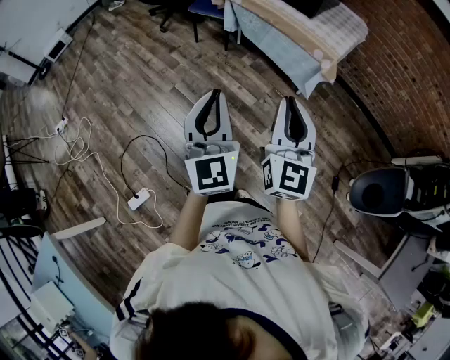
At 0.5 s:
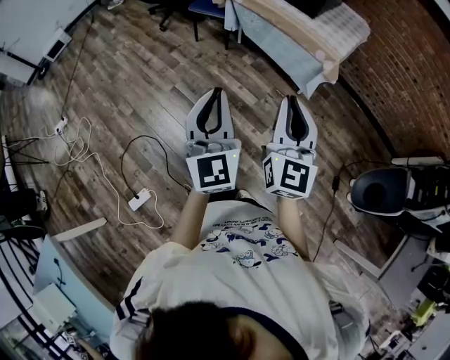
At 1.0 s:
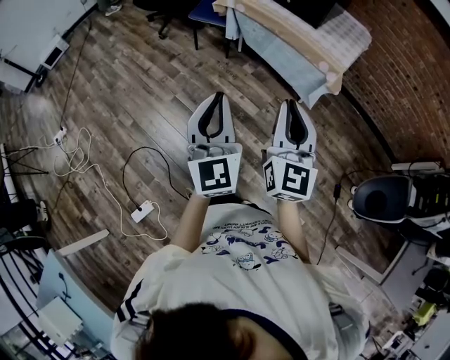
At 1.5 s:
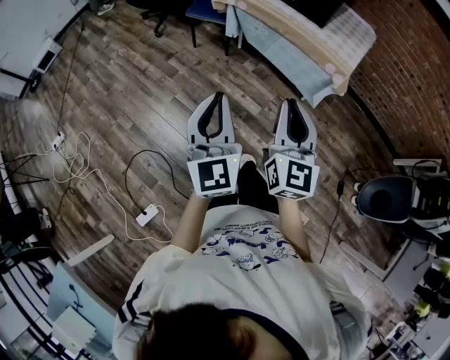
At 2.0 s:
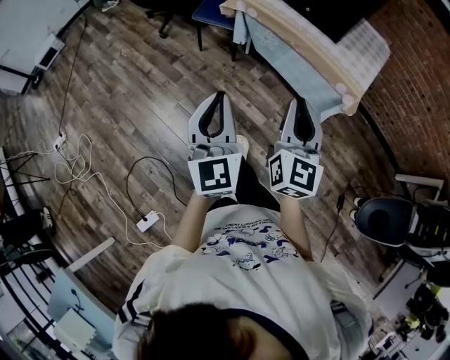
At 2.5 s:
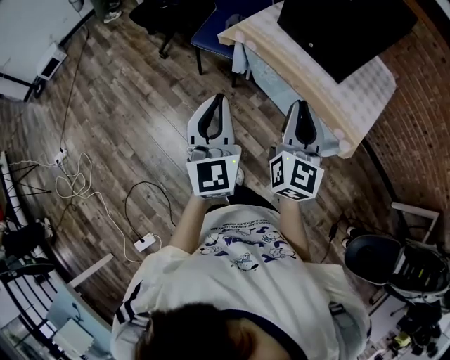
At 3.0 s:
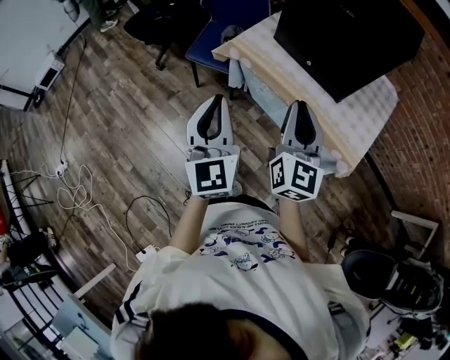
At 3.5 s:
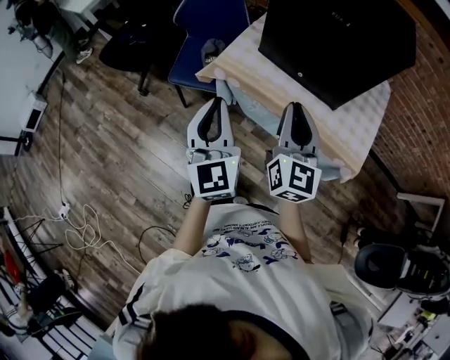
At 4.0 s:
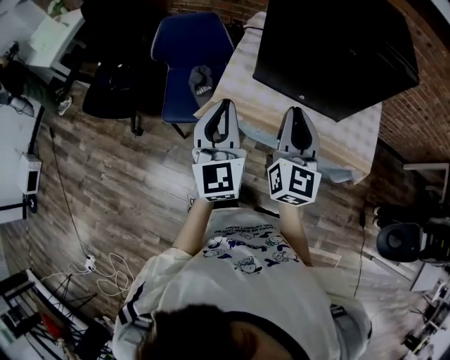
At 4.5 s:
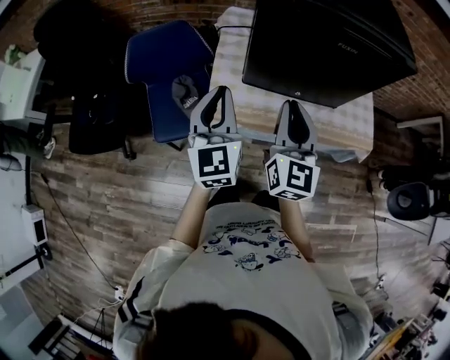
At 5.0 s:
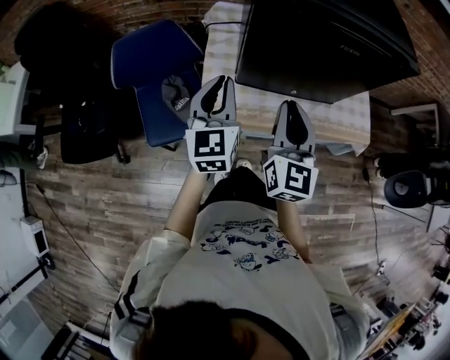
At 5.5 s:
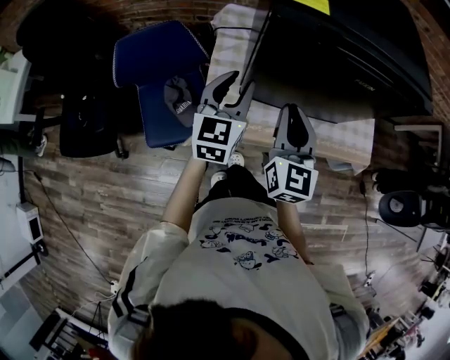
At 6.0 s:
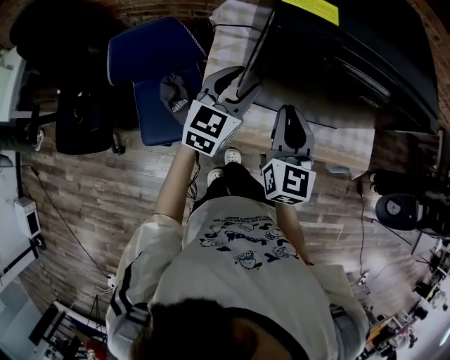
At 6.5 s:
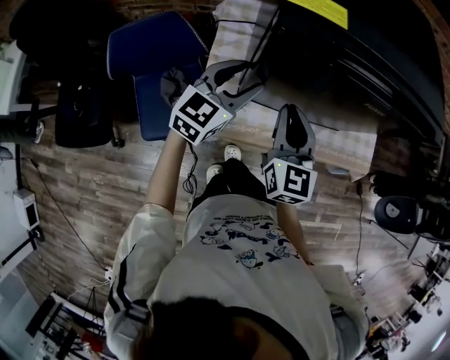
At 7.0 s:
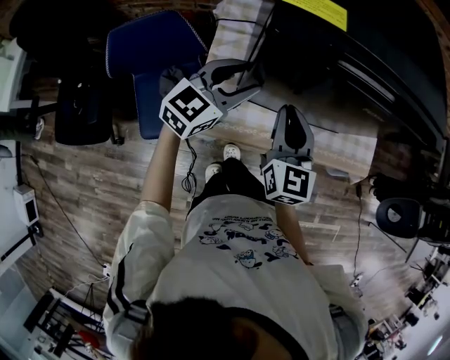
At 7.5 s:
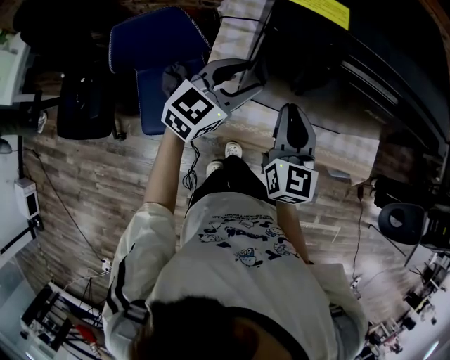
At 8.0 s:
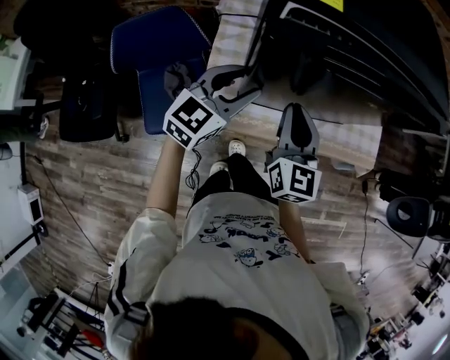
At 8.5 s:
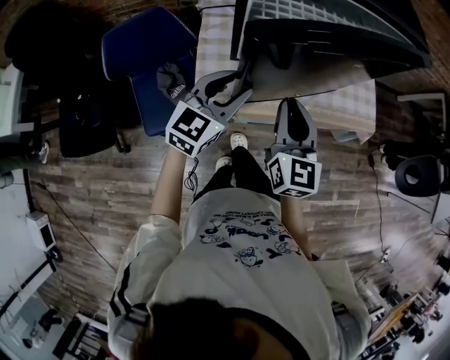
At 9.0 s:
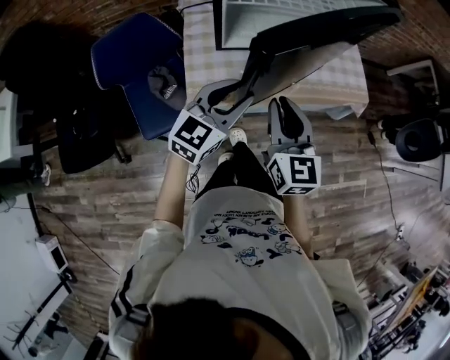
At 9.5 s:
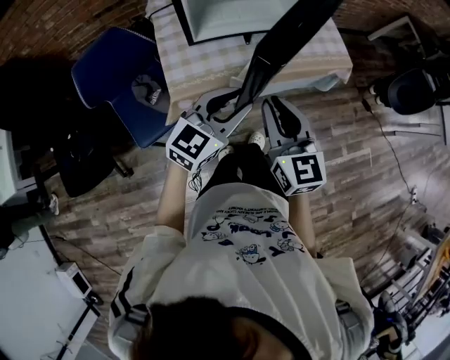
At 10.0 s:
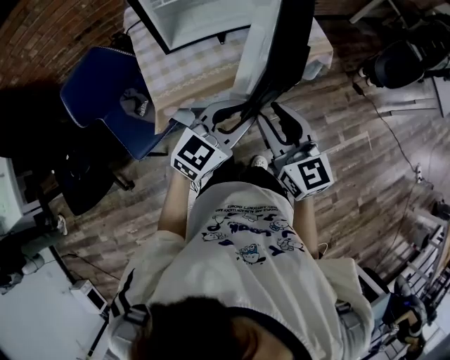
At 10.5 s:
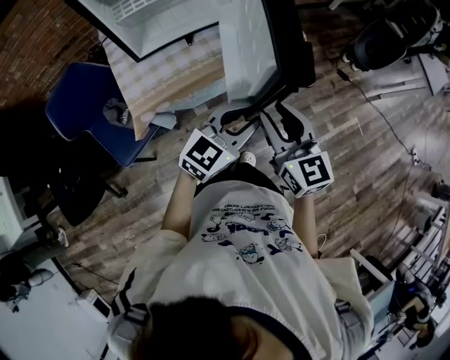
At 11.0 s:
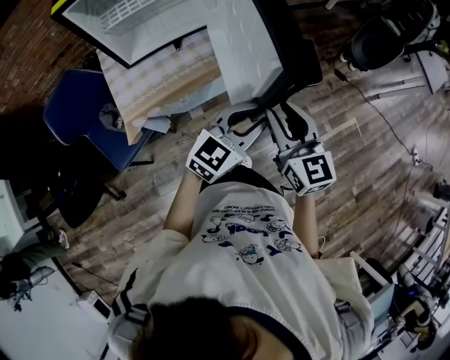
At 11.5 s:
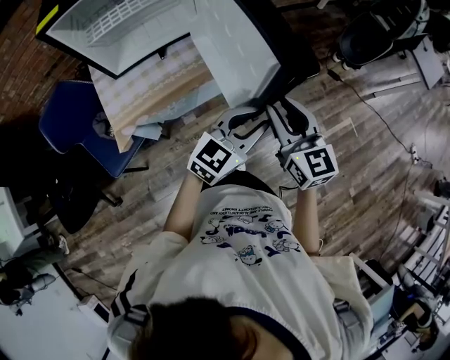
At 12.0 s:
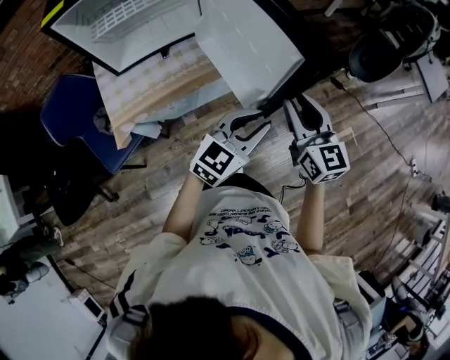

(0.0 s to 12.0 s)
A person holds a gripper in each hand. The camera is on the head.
0.0 s - 2.0 s: Both grippers travel together forward, about 25 cm.
2.0 s - 4.0 s: Both grippers are carried forward, about 60 cm. The left gripper turns by some 30 degrees. The right gripper swivels roughly 20 degrees.
4.0 s - 6.0 s: The left gripper ends up about 30 cm from where it was, swivels some 50 degrees, and opens. The right gripper ends up approximately 20 cm from where it was.
6.0 s - 8.0 s: The grippers make only small movements.
8.0 s - 10.0 s: The right gripper heads backward and to the right, covering roughly 30 cm, and opens its fingers. Meanwhile the left gripper is displaced to the right and backward by some 35 cm, swivels approximately 30 degrees, and closes.
10.0 s - 12.0 s: The left gripper goes about 25 cm to the right; the right gripper goes about 30 cm to the right and forward.

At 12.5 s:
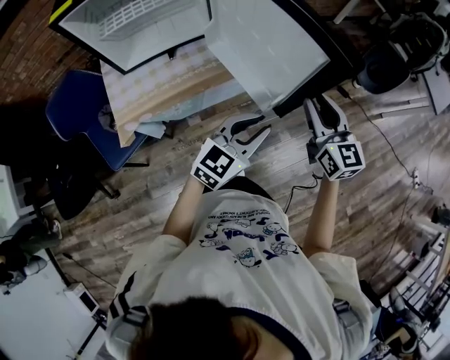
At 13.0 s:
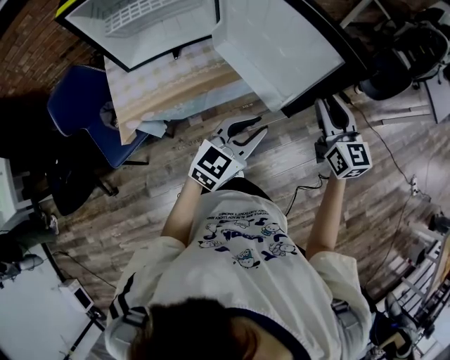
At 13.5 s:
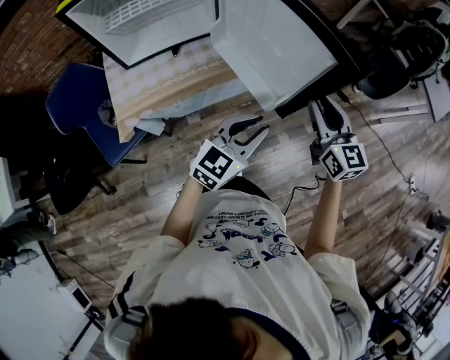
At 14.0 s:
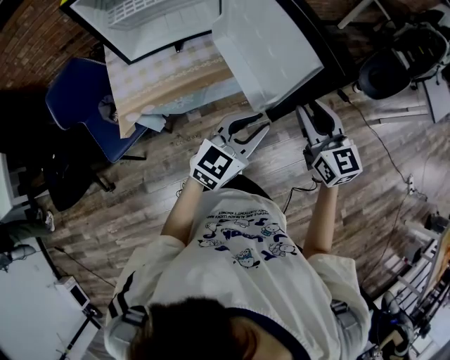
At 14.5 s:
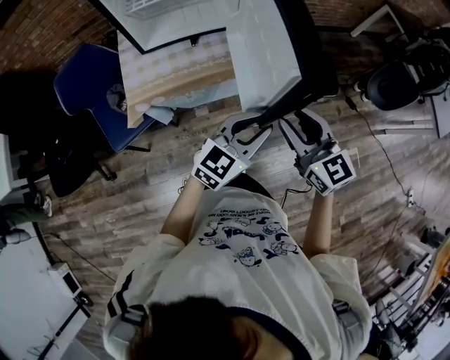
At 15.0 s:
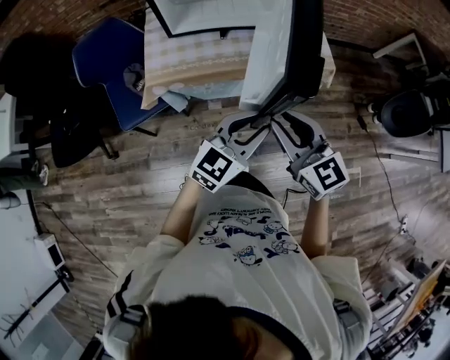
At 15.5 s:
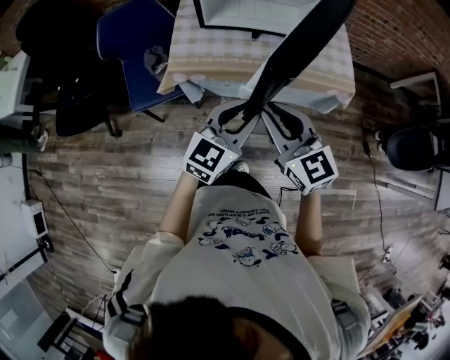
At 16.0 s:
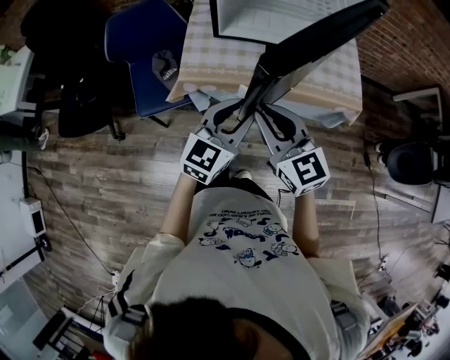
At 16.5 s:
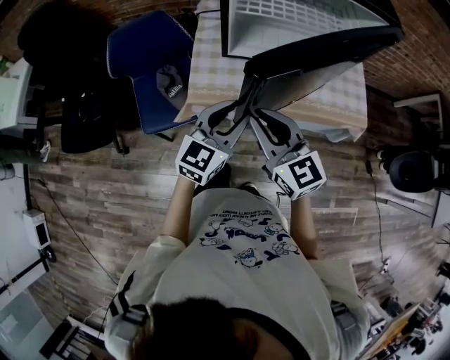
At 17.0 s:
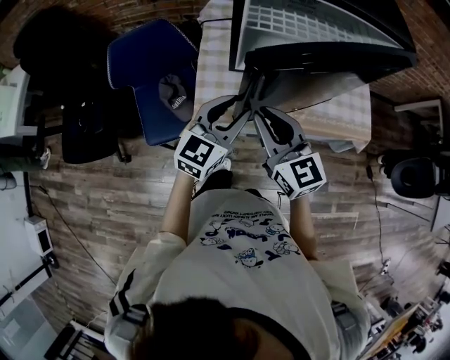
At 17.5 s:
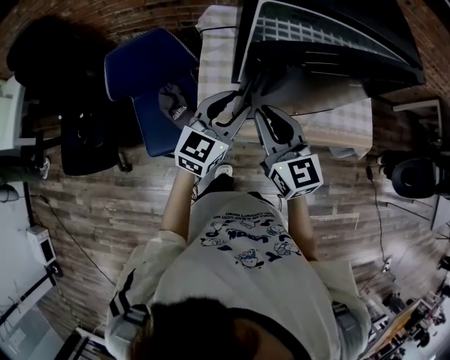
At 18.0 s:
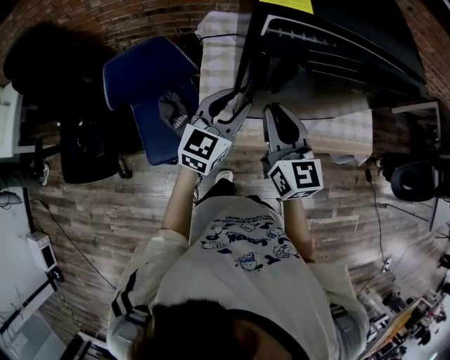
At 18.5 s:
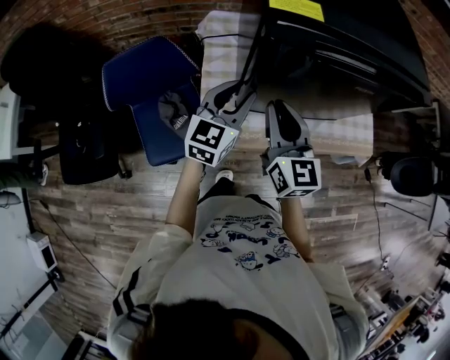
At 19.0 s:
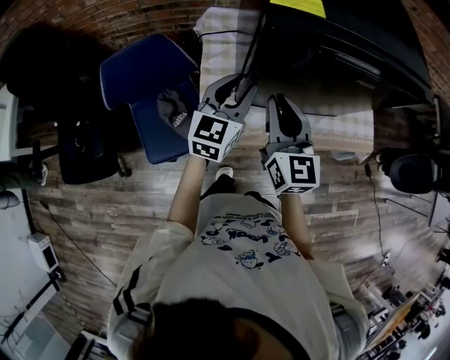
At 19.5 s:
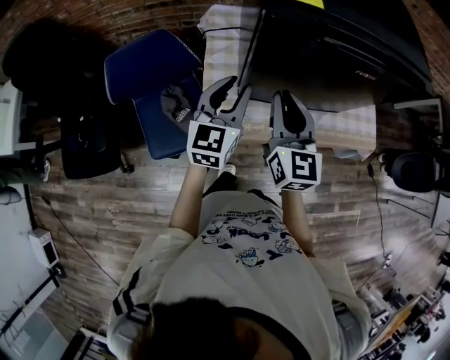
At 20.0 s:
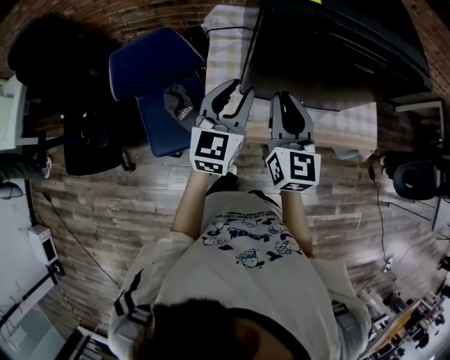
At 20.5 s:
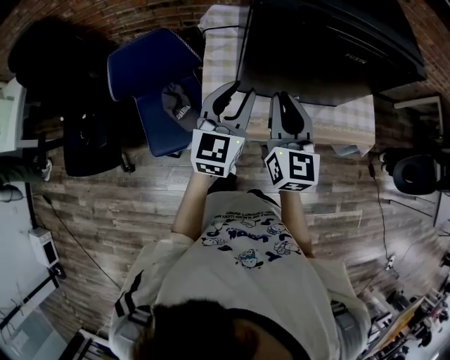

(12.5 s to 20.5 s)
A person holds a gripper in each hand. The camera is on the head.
12.5 s - 14.5 s: The right gripper moves to the left and backward, roughly 15 cm, and swivels about 20 degrees. Meanwhile the left gripper shifts by approximately 5 cm.
14.5 s - 16.5 s: The right gripper moves roughly 35 cm, and closes up; the left gripper ends up some 35 cm from where it was, and turns by about 30 degrees.
16.5 s - 18.5 s: Both grippers travel together forward, some 20 cm. The right gripper rotates roughly 30 degrees.
18.5 s - 20.5 s: The left gripper moves backward, about 5 cm.

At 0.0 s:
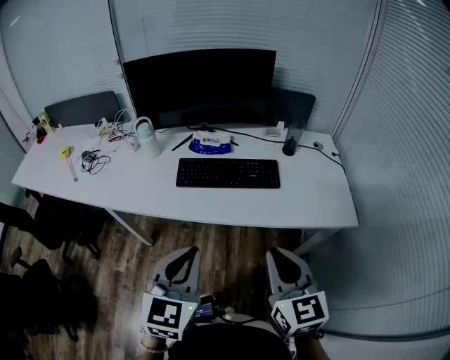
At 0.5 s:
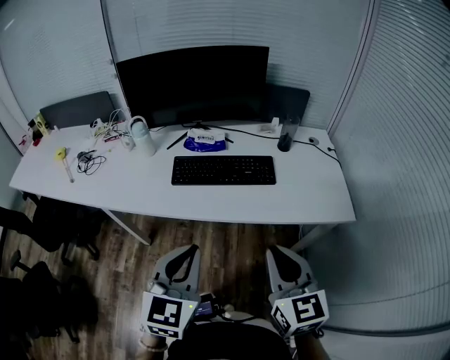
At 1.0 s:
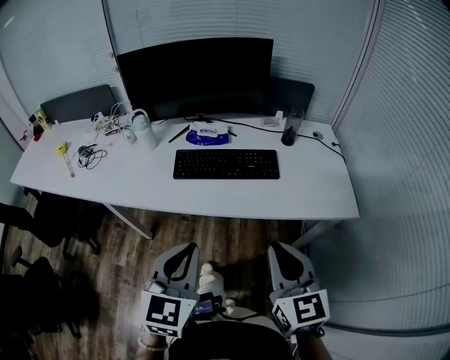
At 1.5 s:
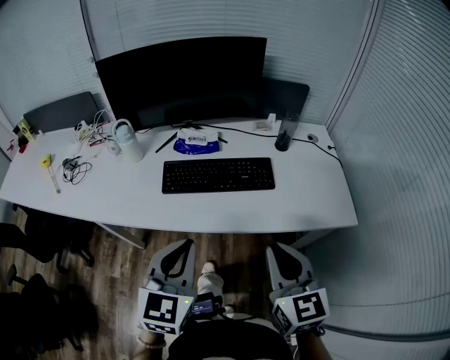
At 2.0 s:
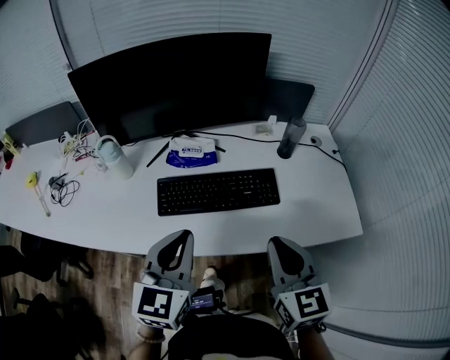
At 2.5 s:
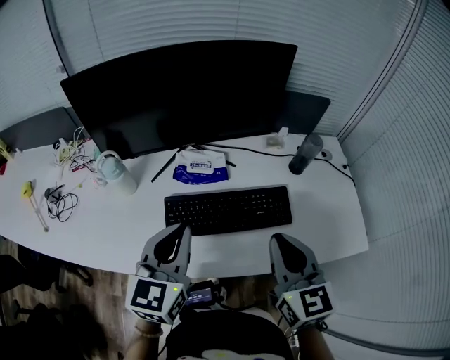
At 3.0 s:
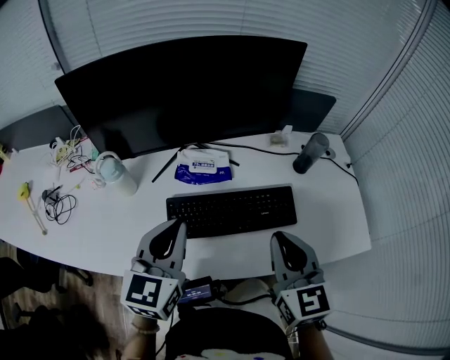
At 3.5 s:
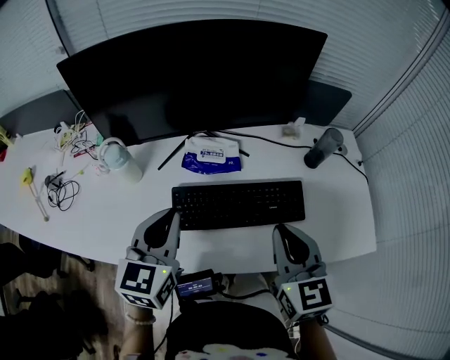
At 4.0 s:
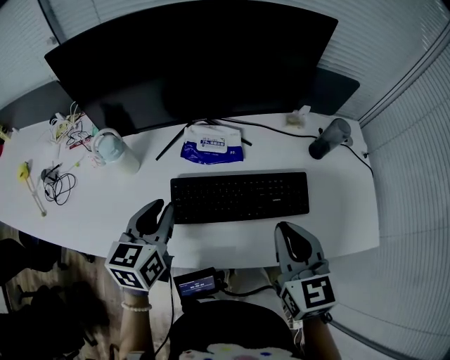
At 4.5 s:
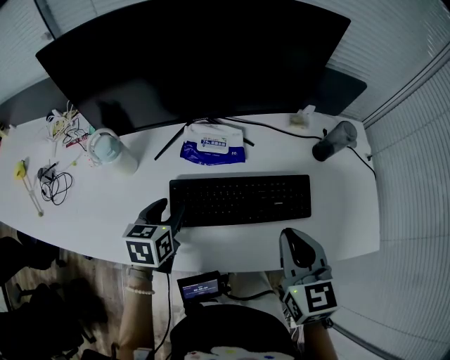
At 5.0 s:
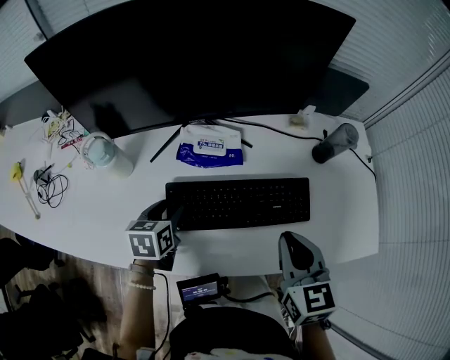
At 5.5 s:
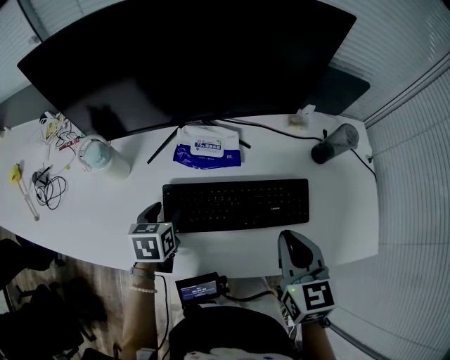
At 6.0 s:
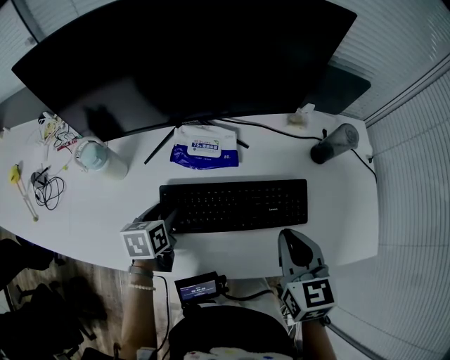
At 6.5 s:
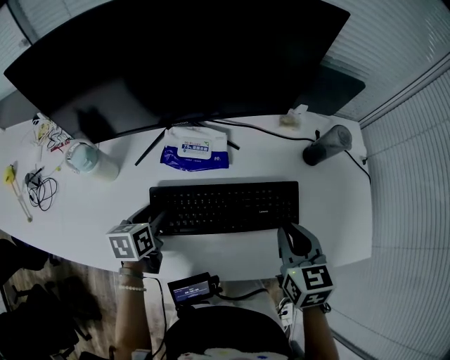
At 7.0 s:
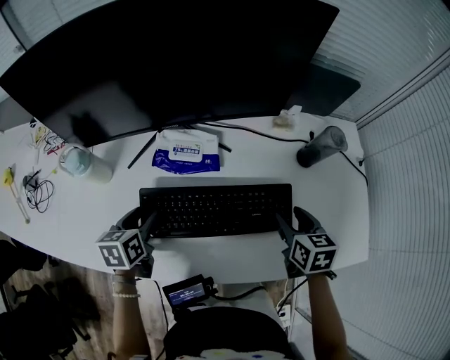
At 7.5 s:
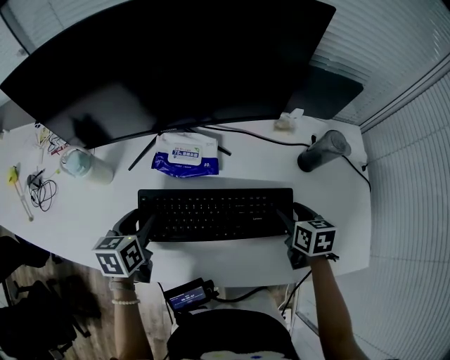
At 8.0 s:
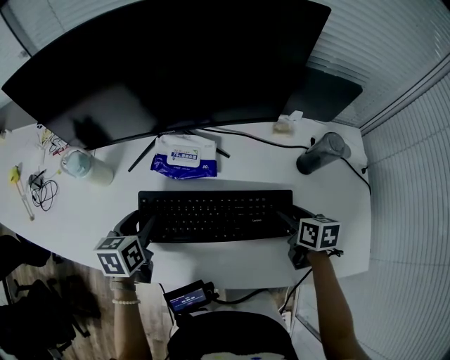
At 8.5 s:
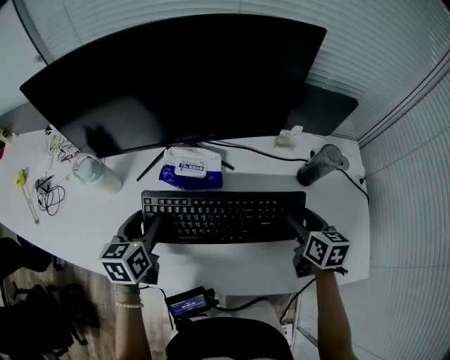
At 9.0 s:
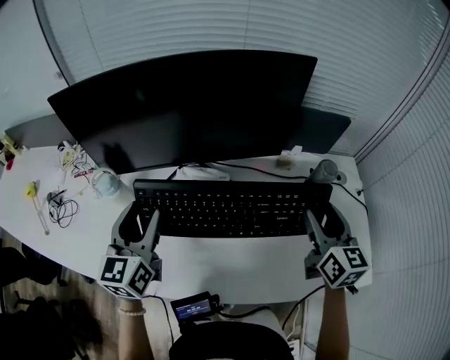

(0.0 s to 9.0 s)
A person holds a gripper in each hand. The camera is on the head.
0.0 s - 2.0 s: The two grippers go about 20 cm forward.
2.0 s - 4.5 s: The right gripper is displaced forward and to the left by approximately 15 cm; the left gripper heads downward, forward and to the left, covering some 30 cm, turns by roughly 30 degrees, and opens its fingers.
4.5 s - 7.0 s: The right gripper moves downward, to the right and forward, approximately 20 cm, rotates approximately 20 degrees, and opens its fingers.
7.0 s - 9.0 s: The grippers both shift upward by about 20 cm. The left gripper tips its fingers upward by roughly 40 degrees; the right gripper tilts its fingers approximately 30 degrees upward.
